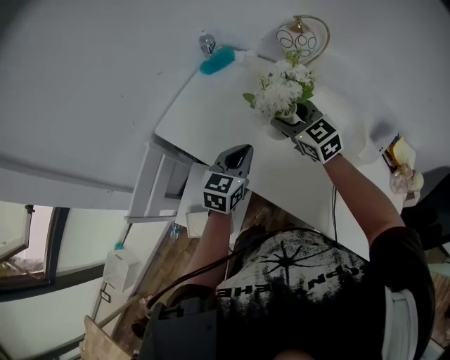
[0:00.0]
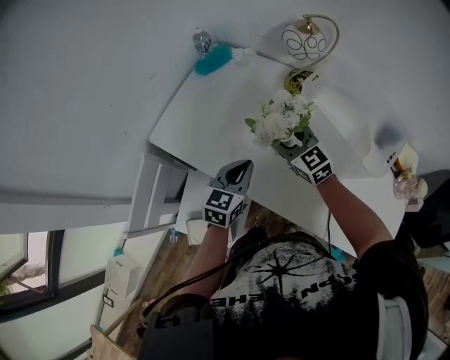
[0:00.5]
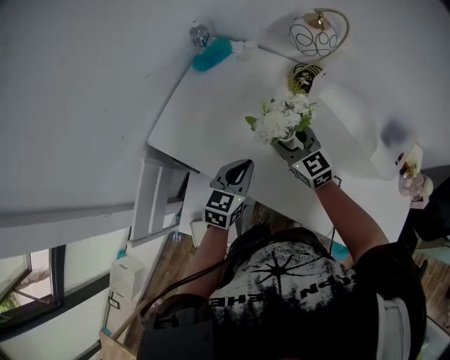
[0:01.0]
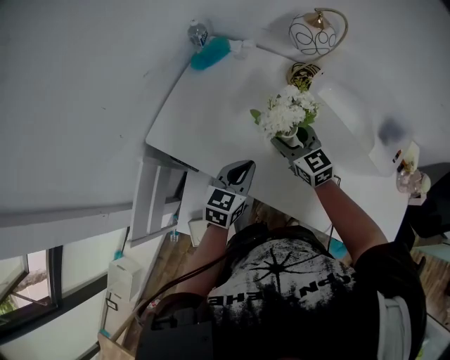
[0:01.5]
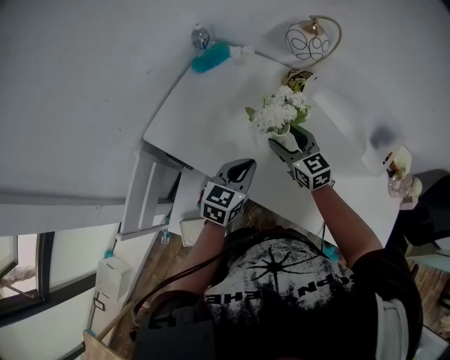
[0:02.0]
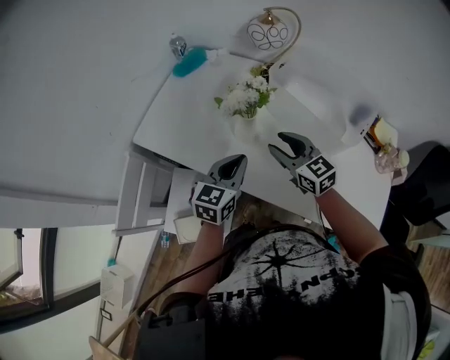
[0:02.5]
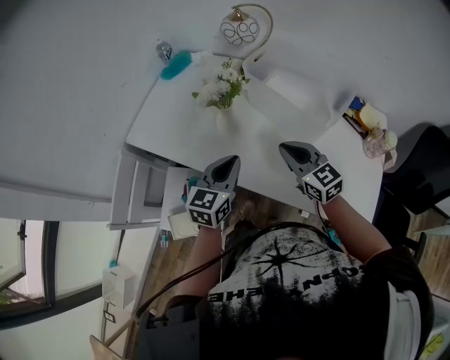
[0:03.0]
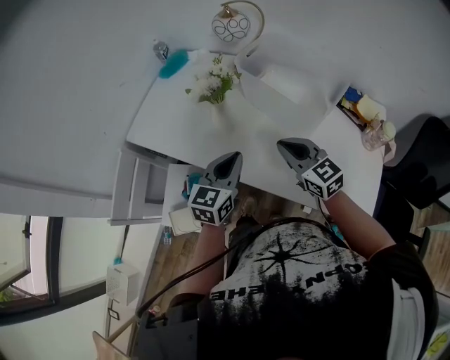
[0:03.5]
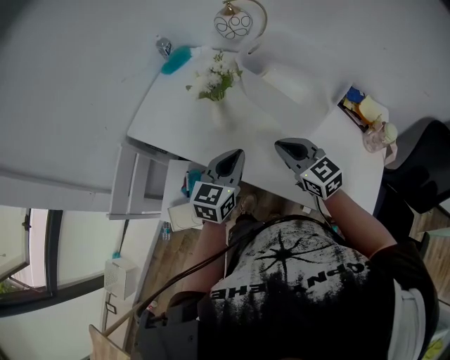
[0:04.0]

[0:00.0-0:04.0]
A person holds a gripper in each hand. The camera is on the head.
0:00.0 to 0:02.0: The left gripper heads downward, covering about 5 cm, while the right gripper moves downward, roughly 10 cm.
0:02.0 to 0:04.0: The right gripper is displaced backward and to the right by approximately 25 cm, and closes. Meanwhile the left gripper heads to the right, backward and upward, covering roughly 20 cm.

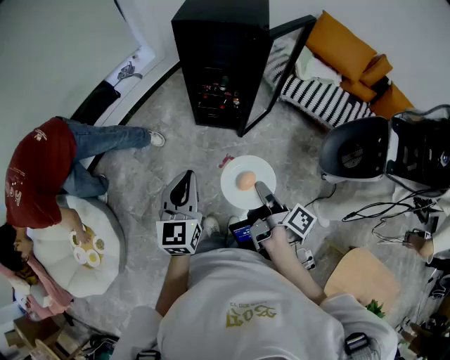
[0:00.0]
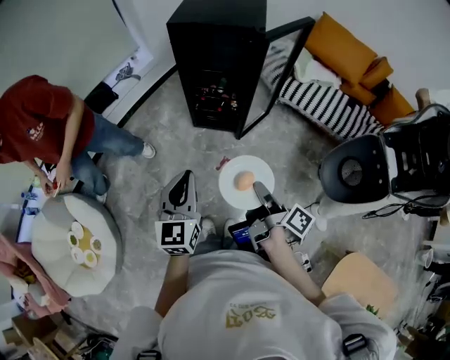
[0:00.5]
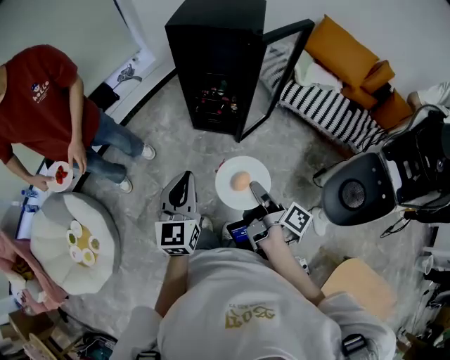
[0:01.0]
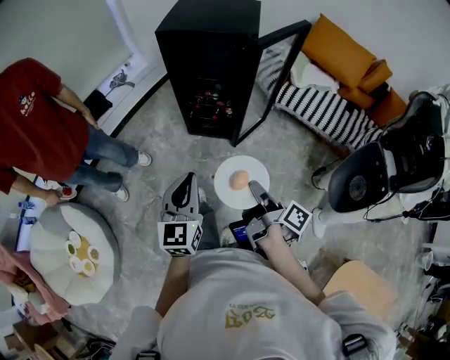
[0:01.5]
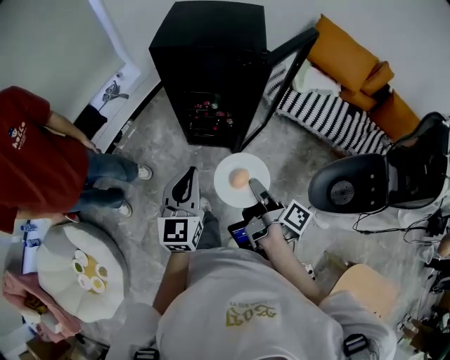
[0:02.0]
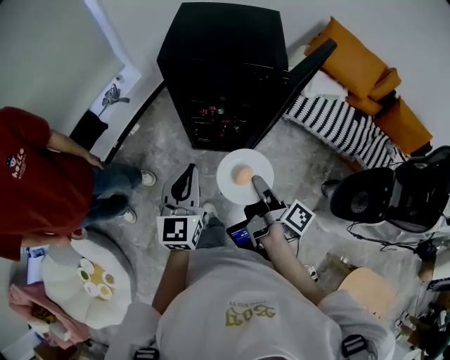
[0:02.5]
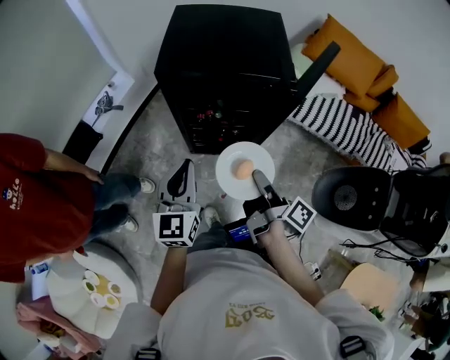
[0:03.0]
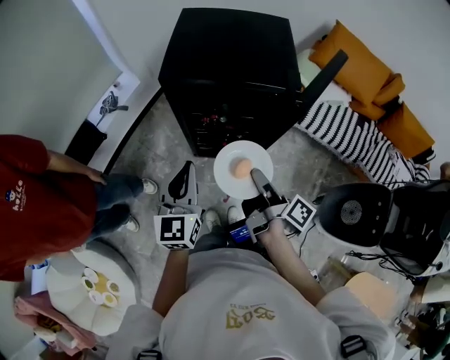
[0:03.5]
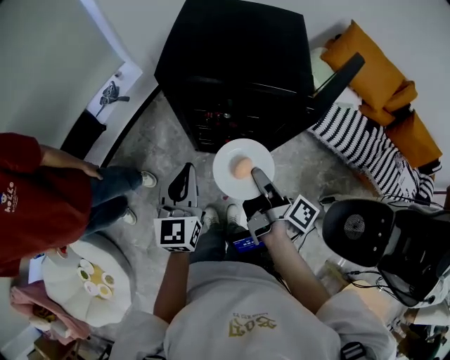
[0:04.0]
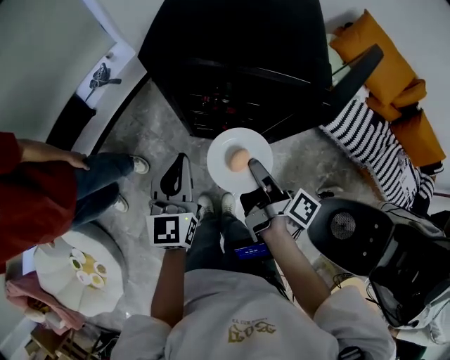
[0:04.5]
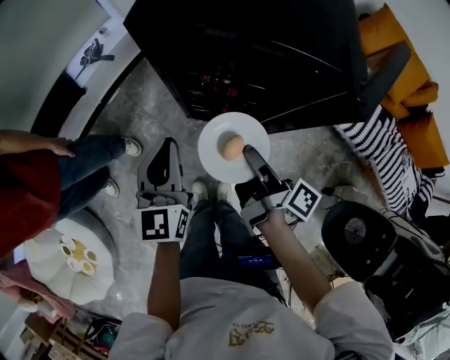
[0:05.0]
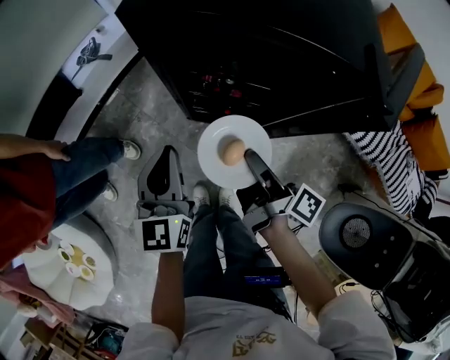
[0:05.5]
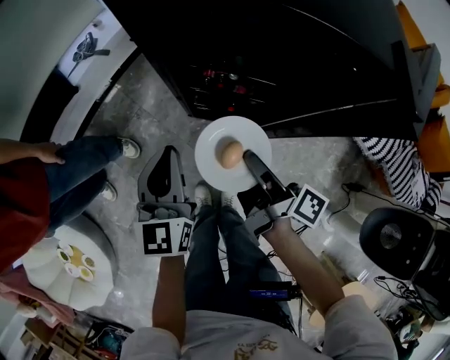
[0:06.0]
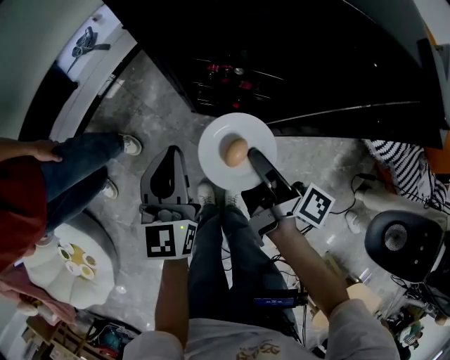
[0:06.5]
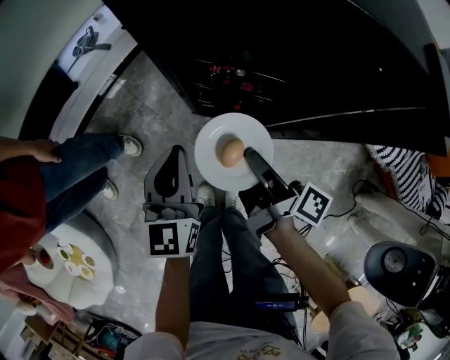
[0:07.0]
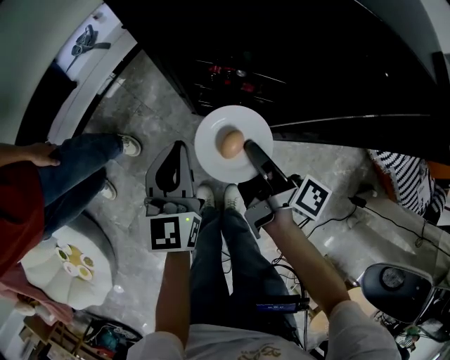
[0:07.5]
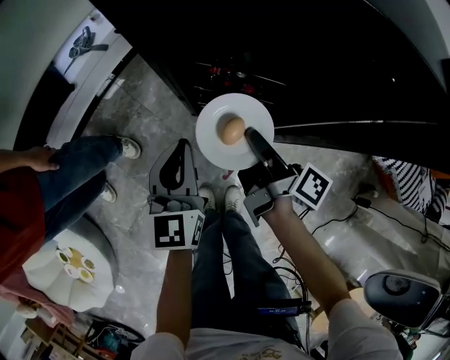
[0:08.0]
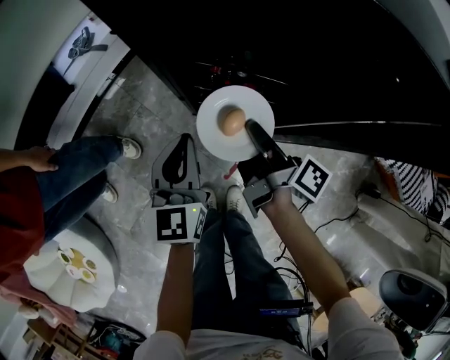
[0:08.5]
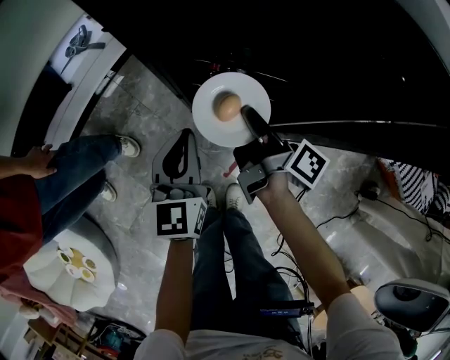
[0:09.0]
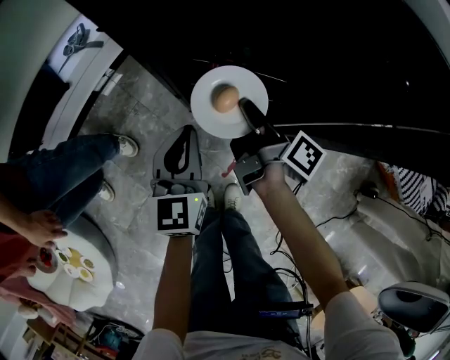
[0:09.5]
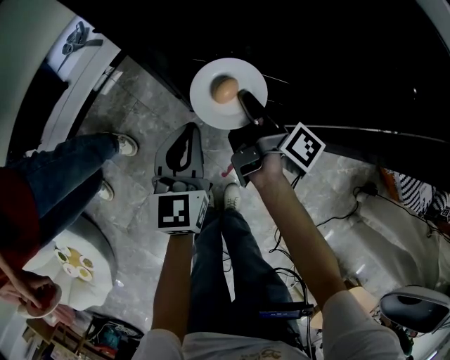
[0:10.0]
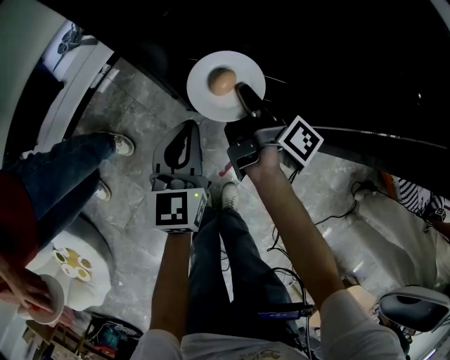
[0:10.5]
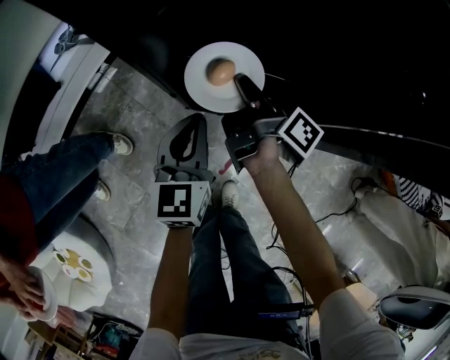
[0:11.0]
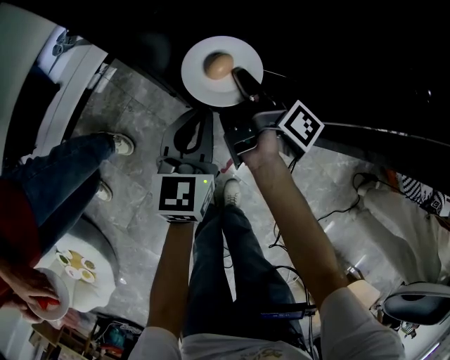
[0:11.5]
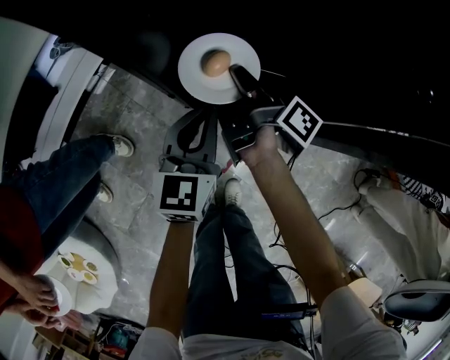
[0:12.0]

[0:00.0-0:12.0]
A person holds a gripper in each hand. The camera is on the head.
0:00.0 to 0:02.0: The left gripper ends up roughly 20 cm from where it was.
0:02.0 to 0:04.0: The left gripper moves roughly 20 cm.
0:04.0 to 0:06.0: The left gripper moves downward, roughly 15 cm.
0:06.0 to 0:08.0: The left gripper shifts about 5 cm downward.
0:08.0 to 0:10.0: The left gripper ends up roughly 5 cm from where it was.
0:10.0 to 0:12.0: The left gripper moves about 5 cm.

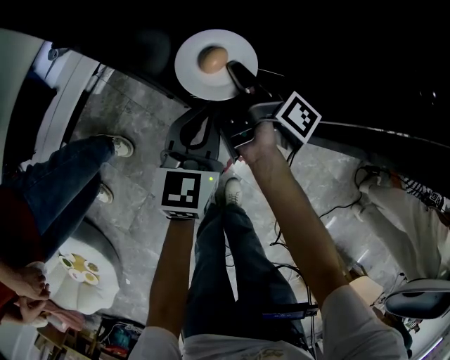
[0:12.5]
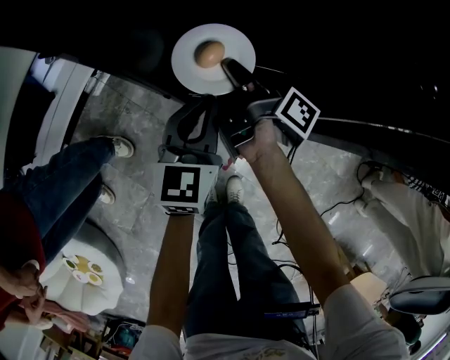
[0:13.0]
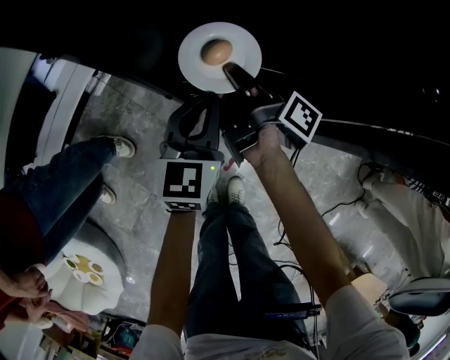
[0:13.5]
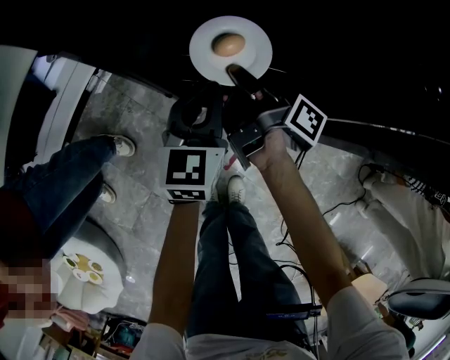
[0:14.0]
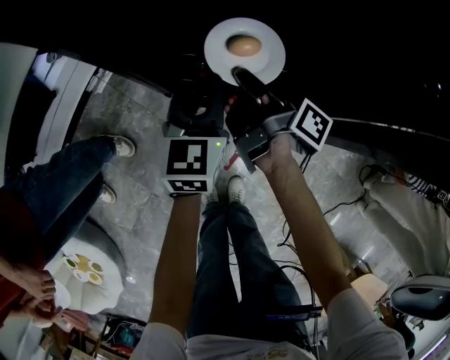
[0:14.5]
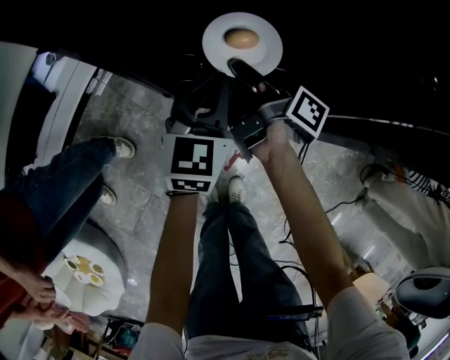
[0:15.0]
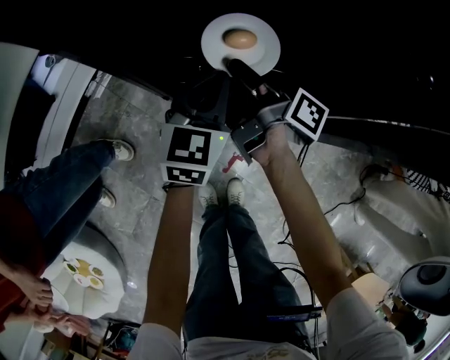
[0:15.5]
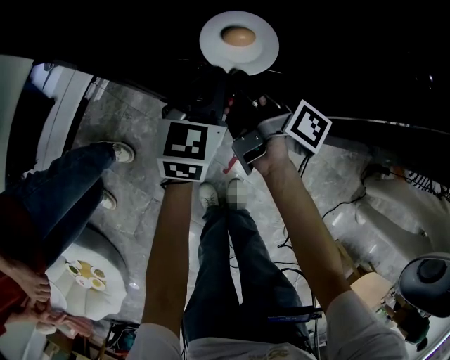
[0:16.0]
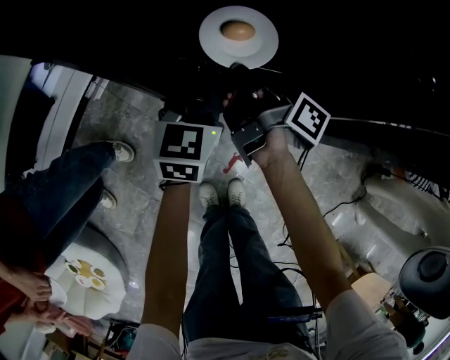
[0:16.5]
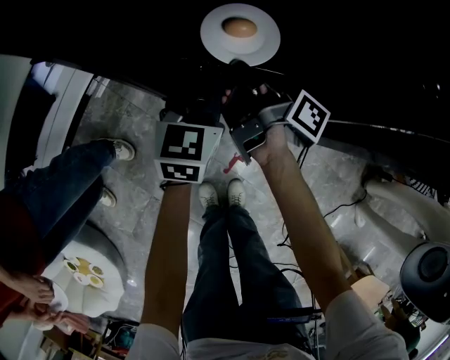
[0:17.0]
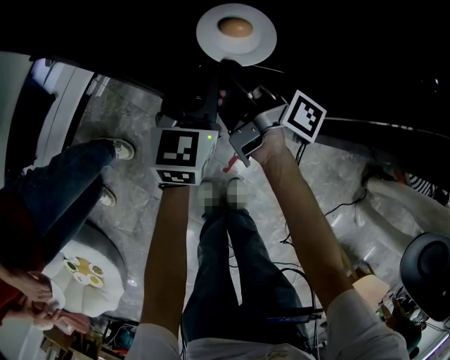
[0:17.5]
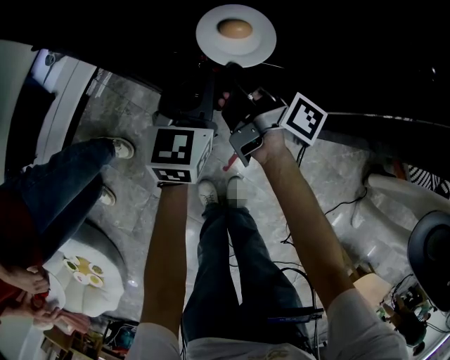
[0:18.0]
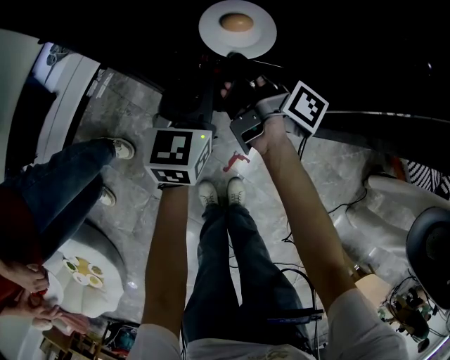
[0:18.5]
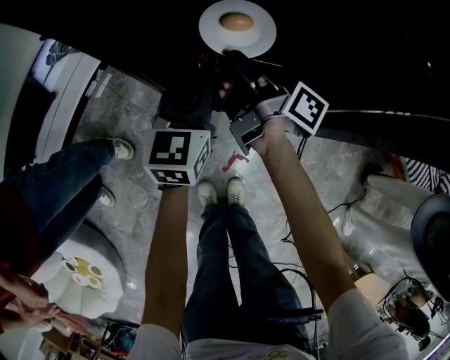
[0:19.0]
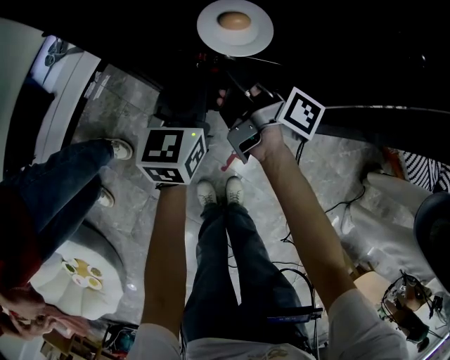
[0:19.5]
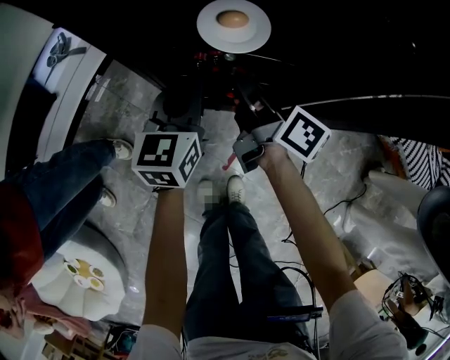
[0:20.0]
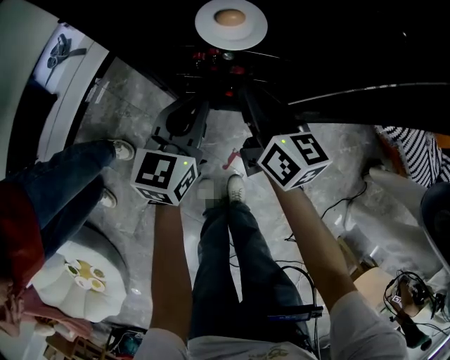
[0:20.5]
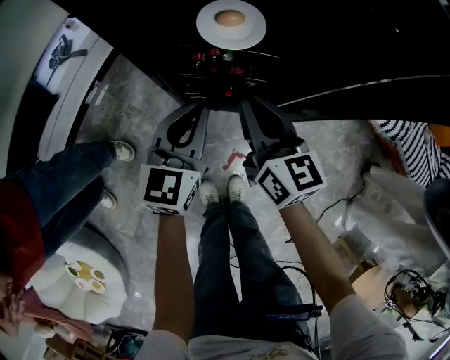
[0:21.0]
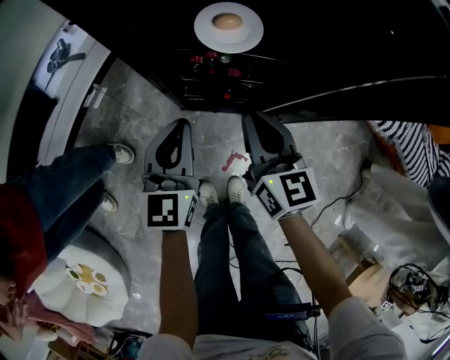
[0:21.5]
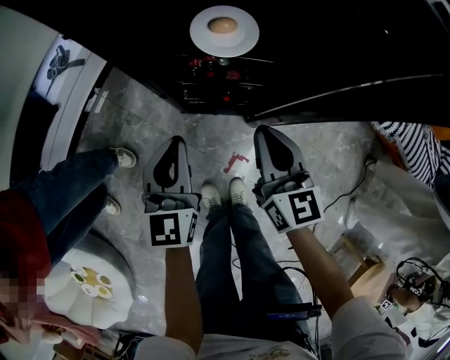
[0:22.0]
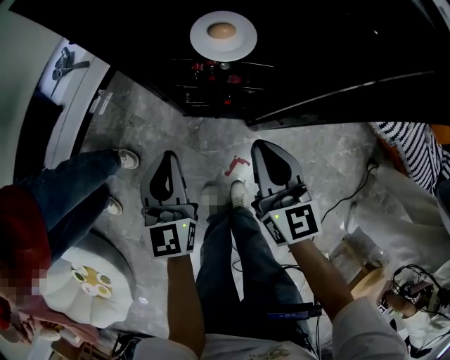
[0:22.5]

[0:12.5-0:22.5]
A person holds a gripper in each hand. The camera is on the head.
0:12.5 to 0:14.5: The left gripper moves some 5 cm.
0:18.5 to 0:20.5: The left gripper changes place by approximately 5 cm.
0:20.5 to 0:22.5: The left gripper moves some 10 cm, and turns by about 20 degrees.

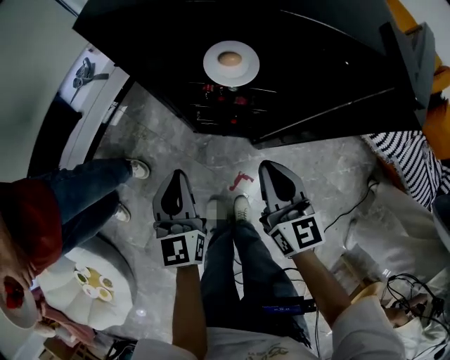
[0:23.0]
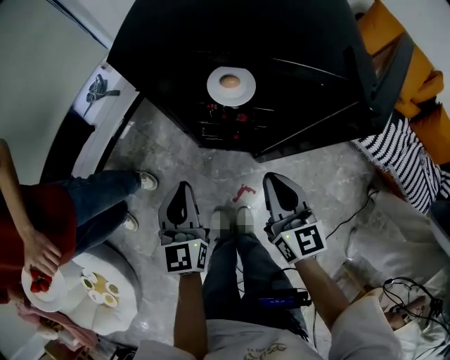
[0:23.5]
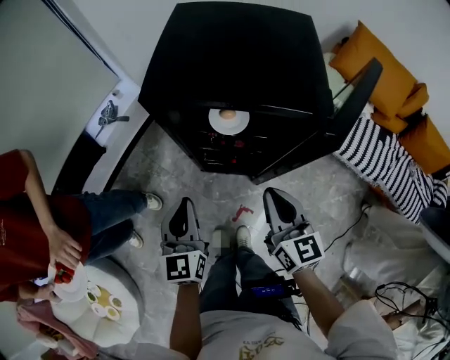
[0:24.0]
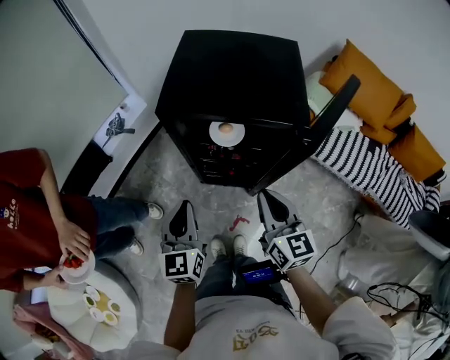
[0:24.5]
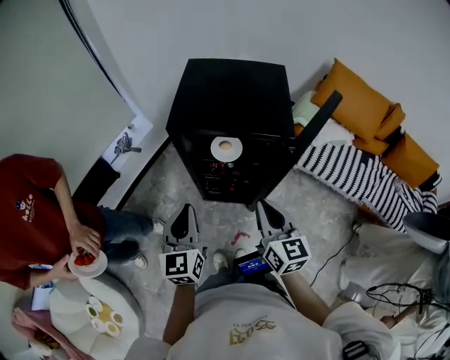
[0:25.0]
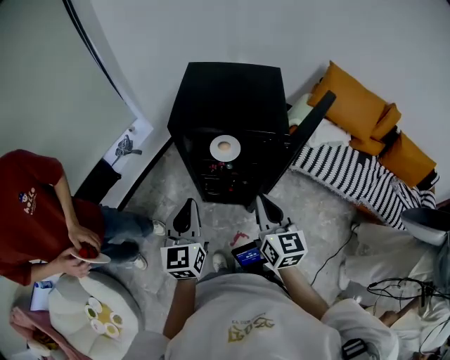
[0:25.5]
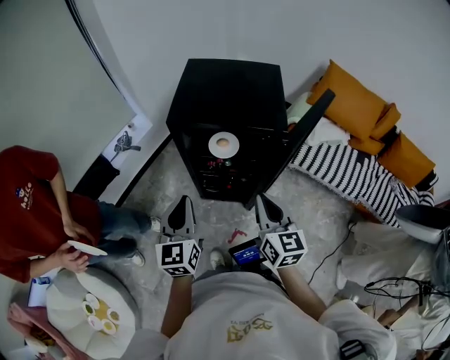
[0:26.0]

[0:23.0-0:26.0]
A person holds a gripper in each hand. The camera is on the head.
0:23.0 to 0:24.5: The left gripper travels upward by approximately 15 cm.
0:24.5 to 0:26.0: The left gripper moves upward, roughly 10 cm.
